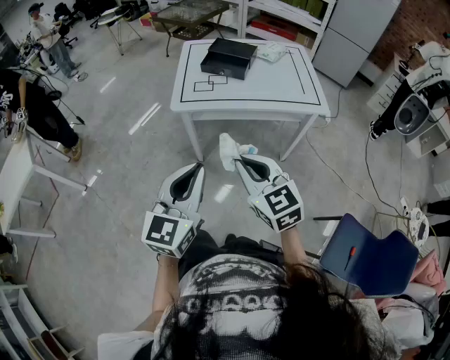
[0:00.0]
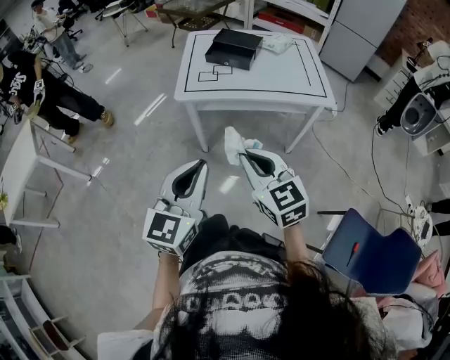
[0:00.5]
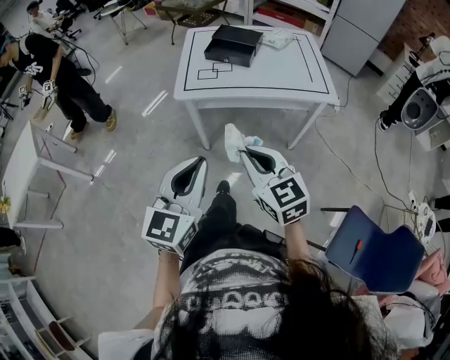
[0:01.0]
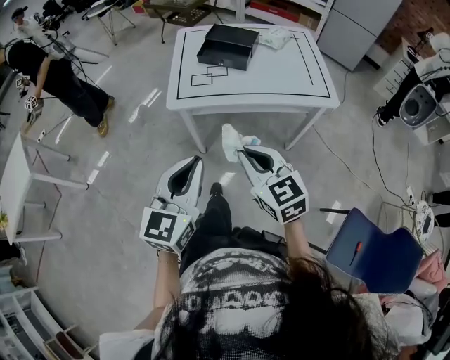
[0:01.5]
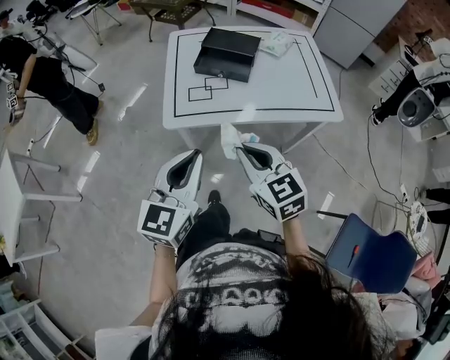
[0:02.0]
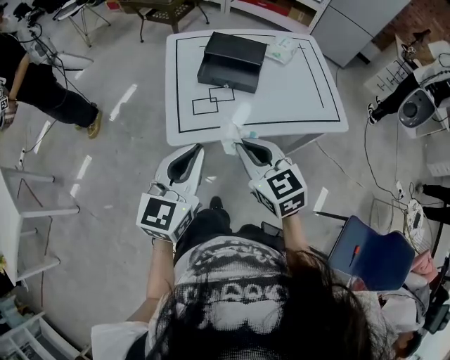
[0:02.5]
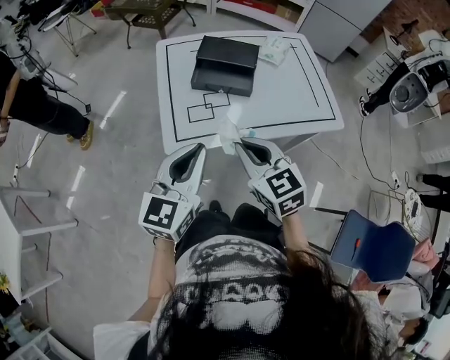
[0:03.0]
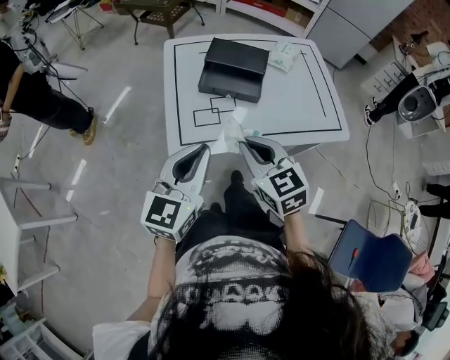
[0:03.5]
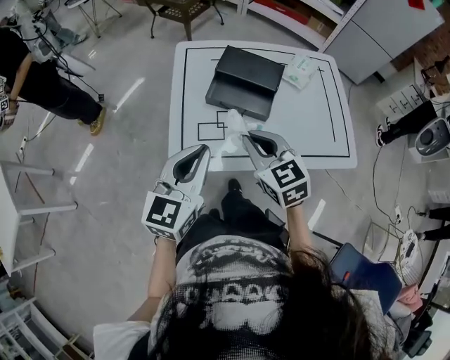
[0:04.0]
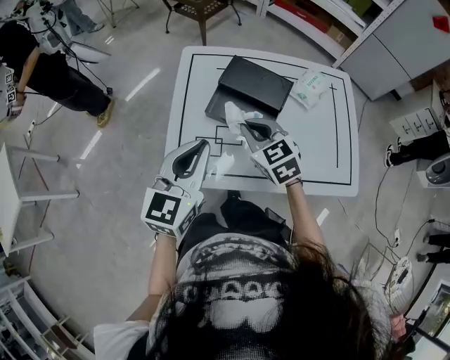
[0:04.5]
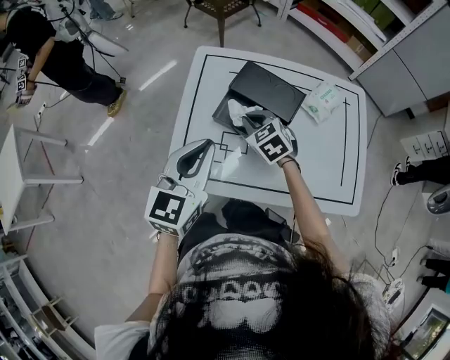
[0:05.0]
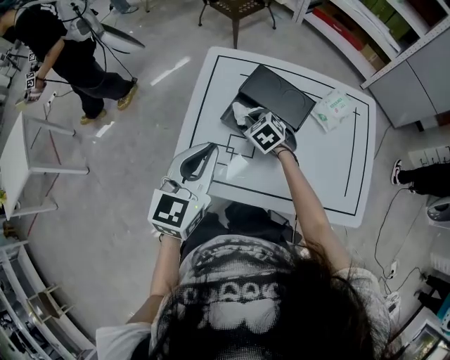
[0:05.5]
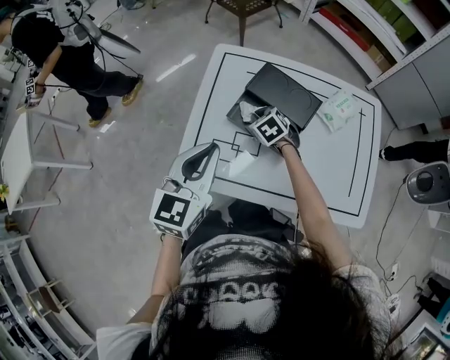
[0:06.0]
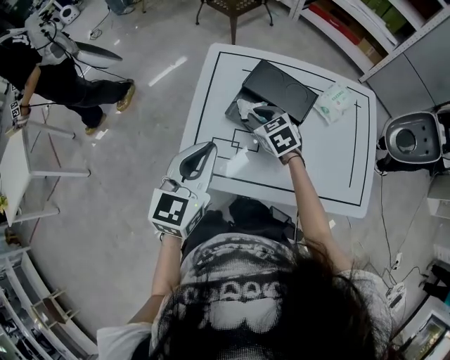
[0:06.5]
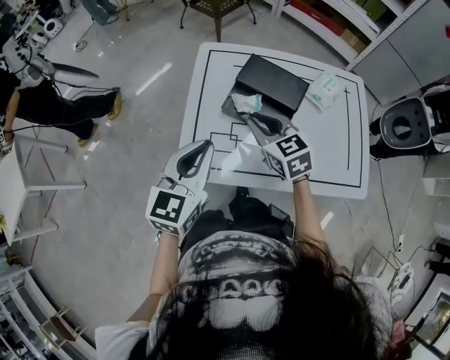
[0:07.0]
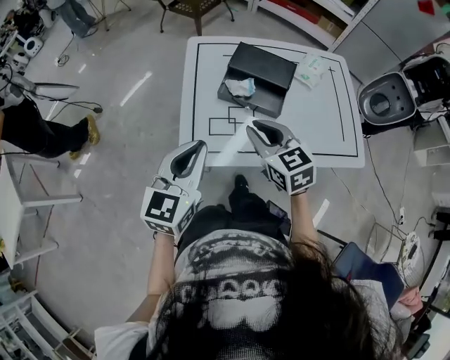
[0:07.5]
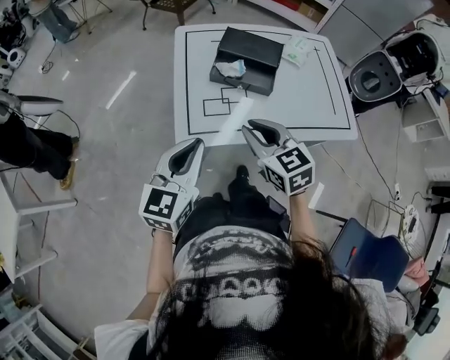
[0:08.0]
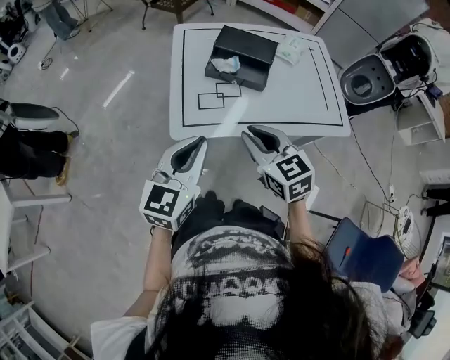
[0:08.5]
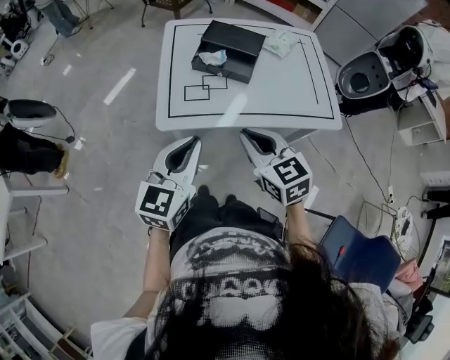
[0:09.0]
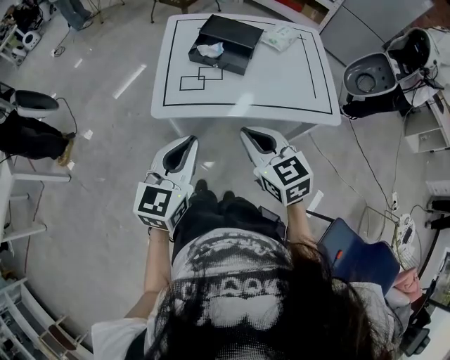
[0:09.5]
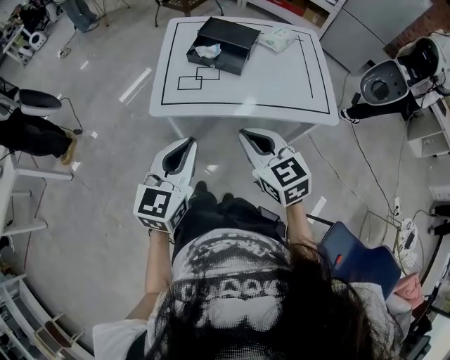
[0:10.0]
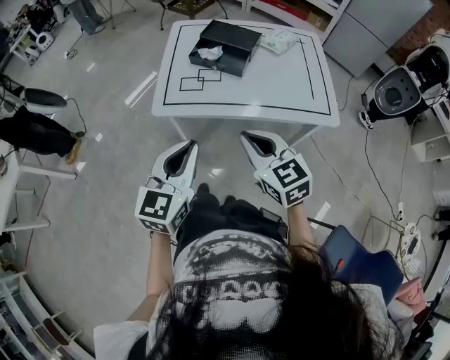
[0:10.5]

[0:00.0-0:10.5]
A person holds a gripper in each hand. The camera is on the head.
0:00.0 to 0:02.0: Both grippers travel together forward, about 25 cm.
0:02.0 to 0:04.0: Both grippers travel together forward, roughly 25 cm.
0:04.0 to 0:06.5: The left gripper shifts some 10 cm forward. The right gripper goes about 25 cm forward and downward, and changes its angle by about 20 degrees.
0:06.5 to 0:08.5: The right gripper shifts roughly 30 cm backward, and turns by roughly 20 degrees; the left gripper shifts about 20 cm backward.
0:08.5 to 0:10.5: Both grippers move backward and to the right, roughly 20 cm.

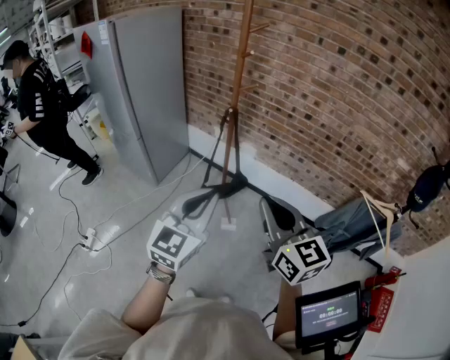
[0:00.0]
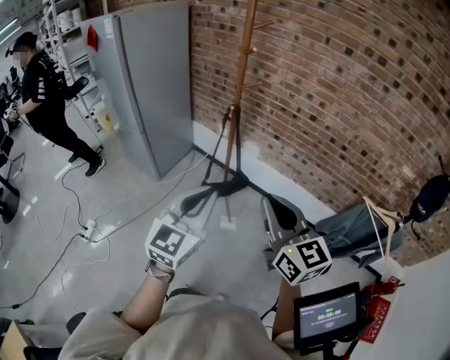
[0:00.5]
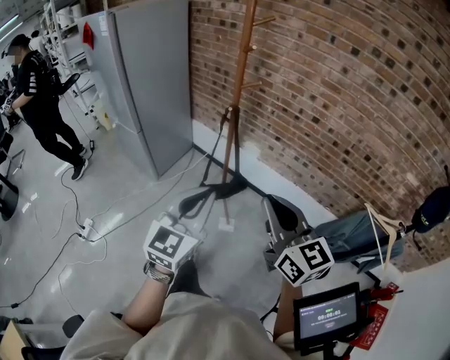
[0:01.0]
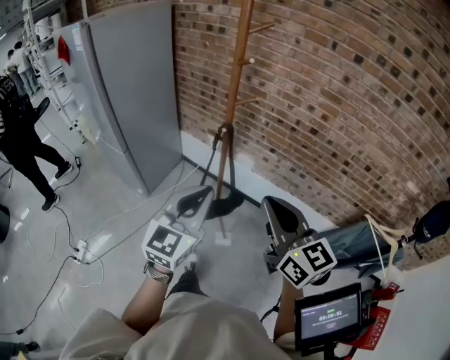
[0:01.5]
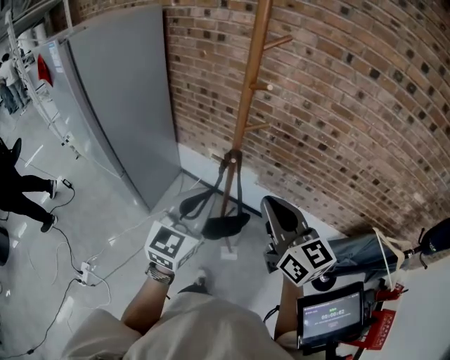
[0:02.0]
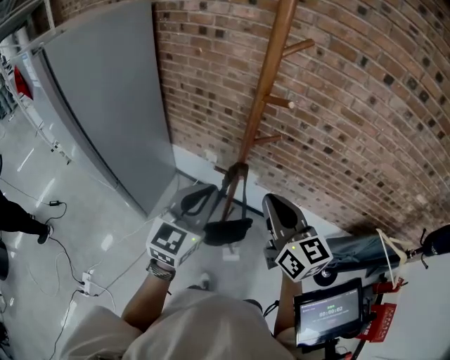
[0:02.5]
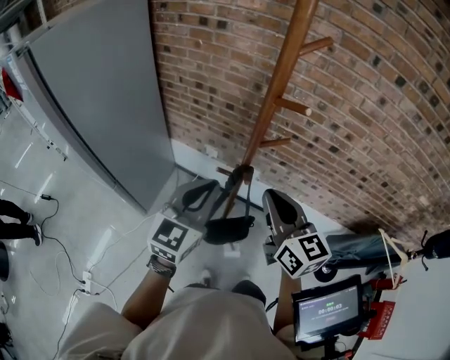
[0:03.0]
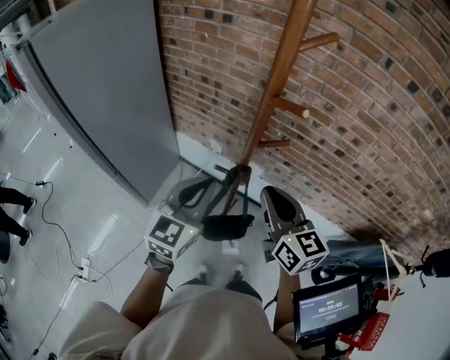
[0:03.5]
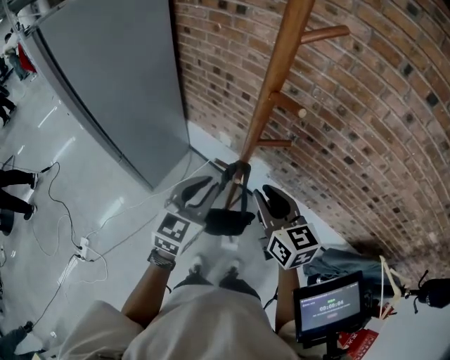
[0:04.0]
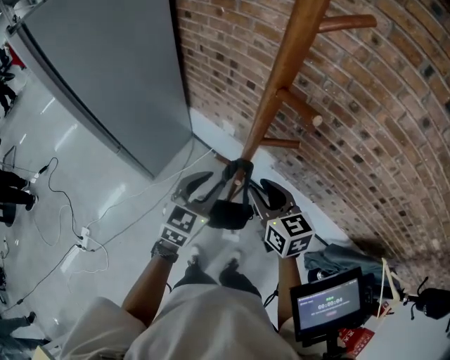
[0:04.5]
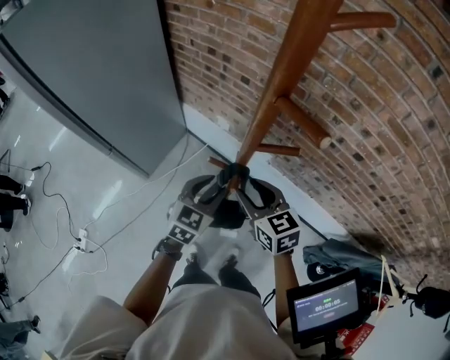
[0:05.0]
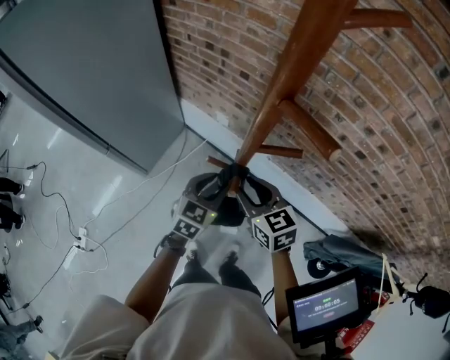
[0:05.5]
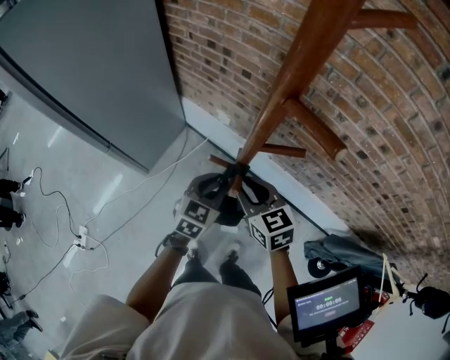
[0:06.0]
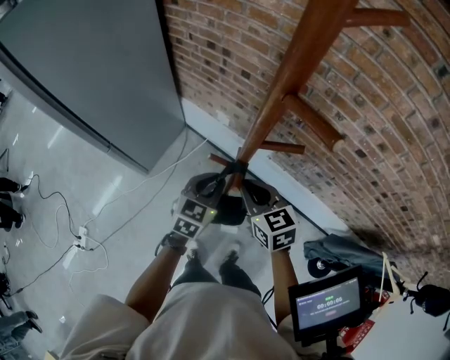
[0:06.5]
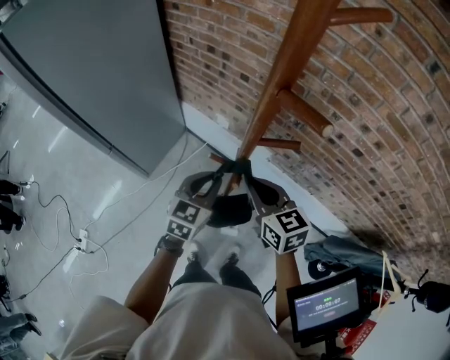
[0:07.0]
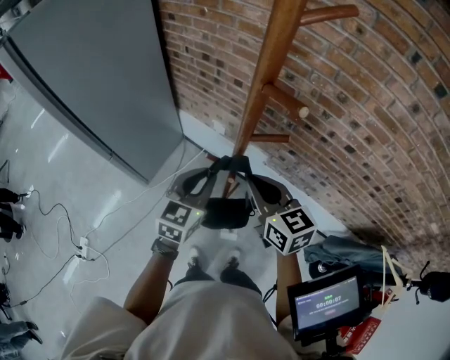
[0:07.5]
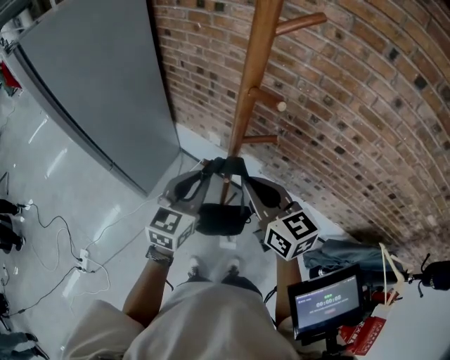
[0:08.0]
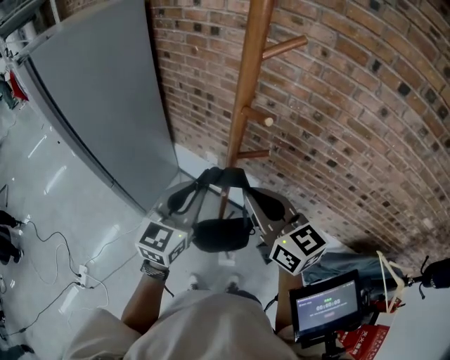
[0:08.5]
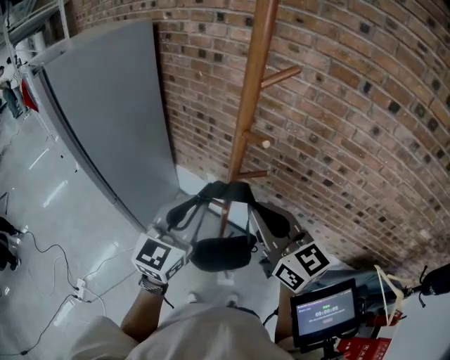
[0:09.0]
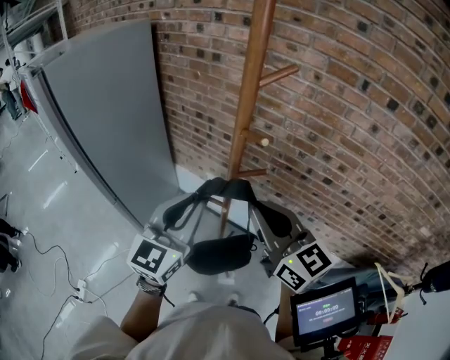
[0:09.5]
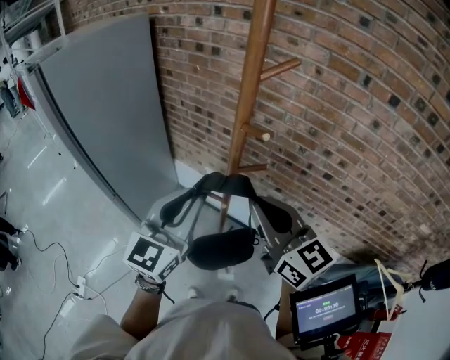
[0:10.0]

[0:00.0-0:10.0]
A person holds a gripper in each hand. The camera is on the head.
0:00.0 to 0:02.0: Both grippers move forward, approximately 25 cm.
0:02.0 to 0:04.0: The two grippers go some 15 cm forward and downward.
0:04.0 to 0:06.0: The left gripper moves downward, roughly 15 cm. The right gripper moves downward and forward, about 15 cm.
0:06.0 to 0:08.0: The two grippers go about 15 cm upward. The right gripper closes up.
0:08.0 to 0:10.0: Both grippers move upward, about 10 cm.

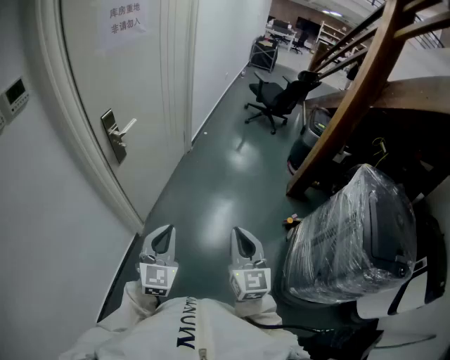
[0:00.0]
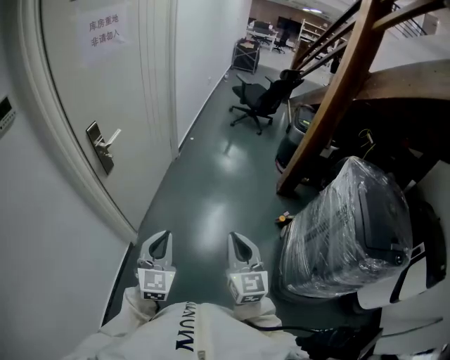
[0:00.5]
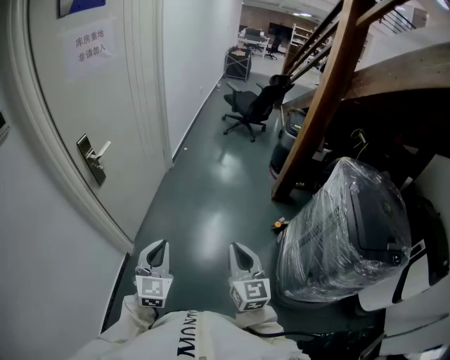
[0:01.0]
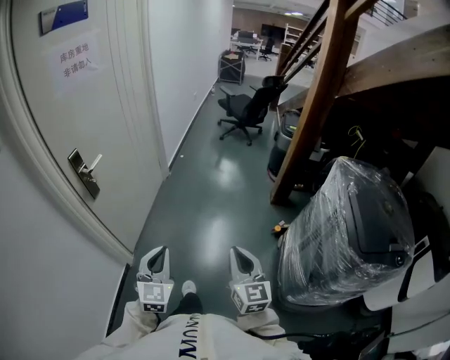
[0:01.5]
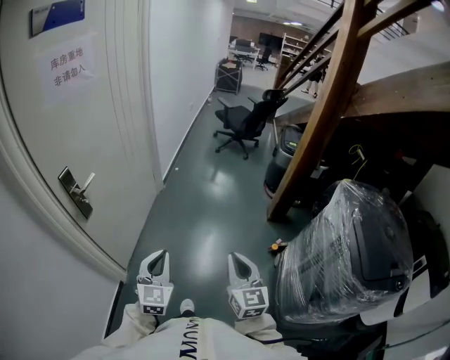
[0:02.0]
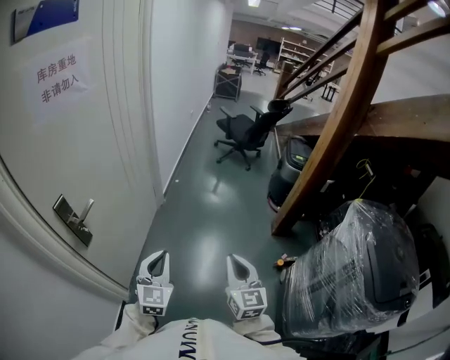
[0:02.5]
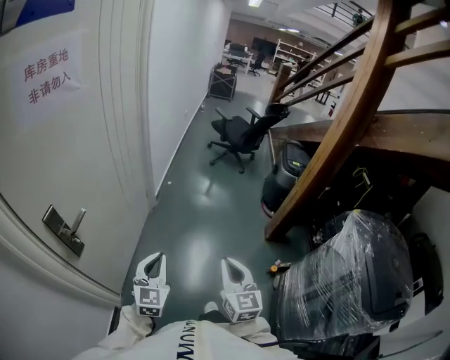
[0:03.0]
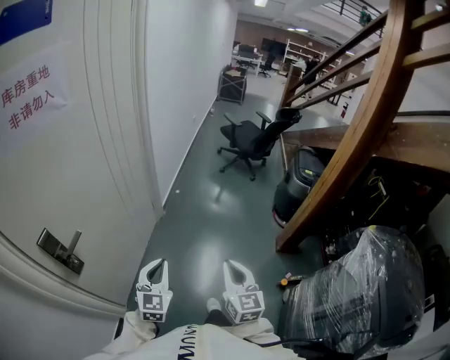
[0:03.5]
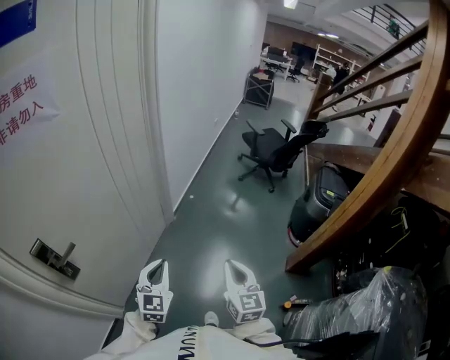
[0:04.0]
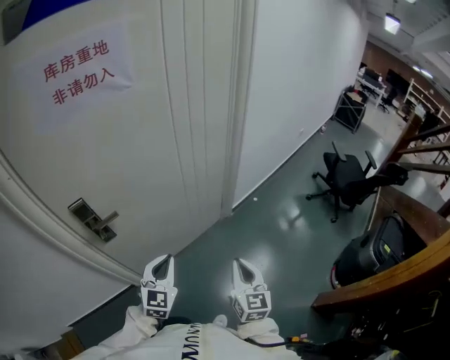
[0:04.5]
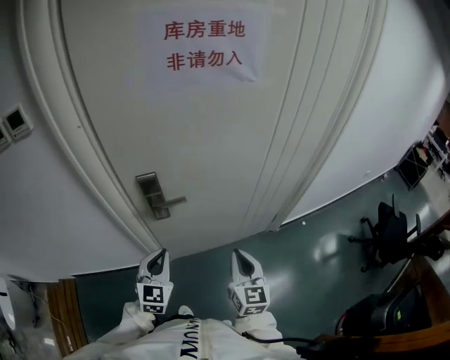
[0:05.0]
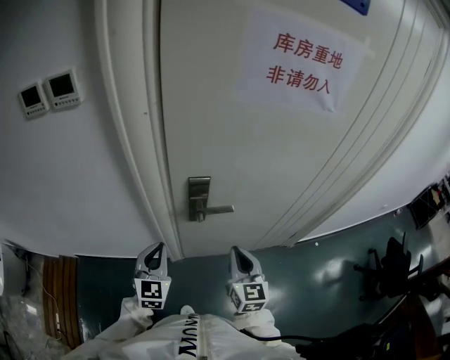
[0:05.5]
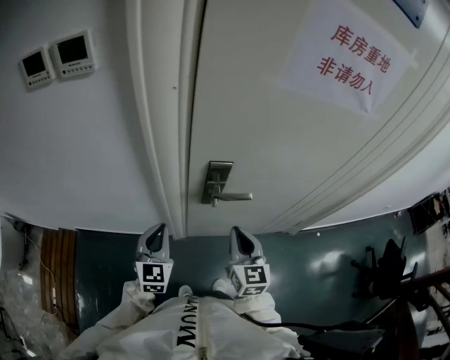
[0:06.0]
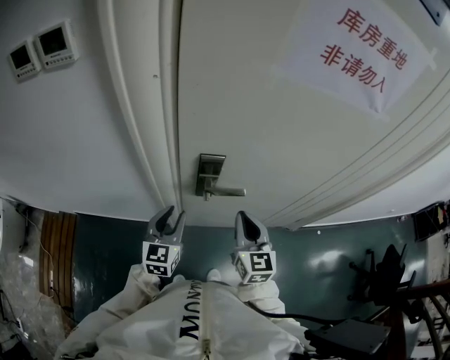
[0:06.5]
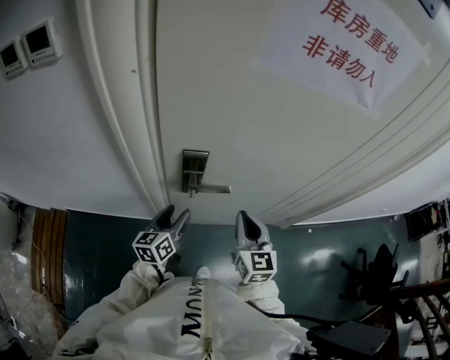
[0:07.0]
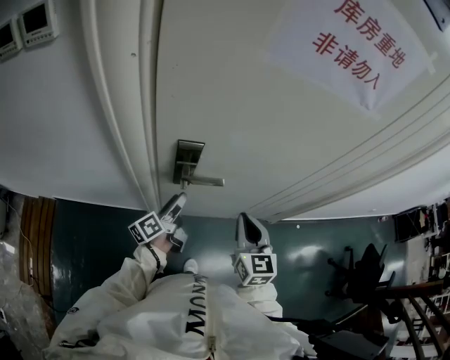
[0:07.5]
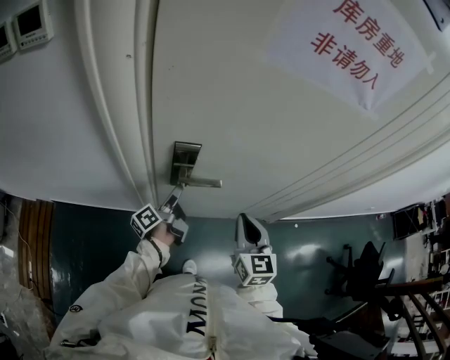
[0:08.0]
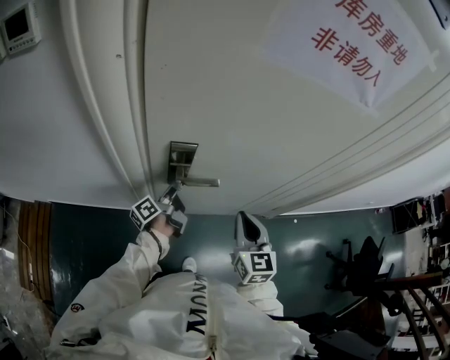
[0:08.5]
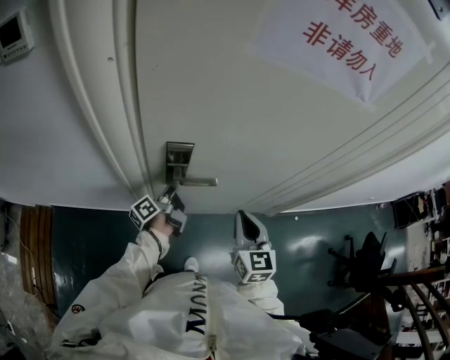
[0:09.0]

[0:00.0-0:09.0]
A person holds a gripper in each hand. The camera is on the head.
0:00.0 to 0:02.0: The two grippers go about 15 cm forward and to the right.
0:02.0 to 0:04.5: The right gripper ends up some 50 cm from where it was, and swivels about 30 degrees. Meanwhile the left gripper changes place by about 35 cm, and swivels some 30 degrees.
0:04.5 to 0:07.0: The left gripper moves some 30 cm, rolls counterclockwise, seen from behind, by about 60 degrees, and opens its fingers. The right gripper shifts by approximately 35 cm, and rotates about 40 degrees.
0:07.0 to 0:09.0: The left gripper travels forward and downward by some 10 cm, rolls counterclockwise, seen from behind, by about 50 degrees, and closes.
